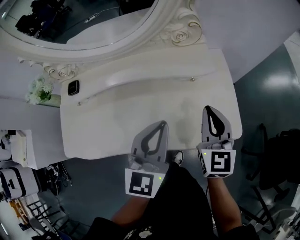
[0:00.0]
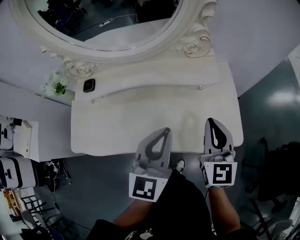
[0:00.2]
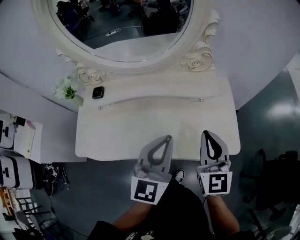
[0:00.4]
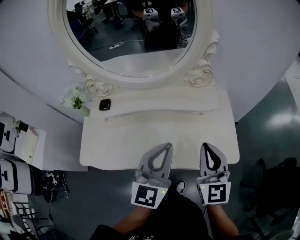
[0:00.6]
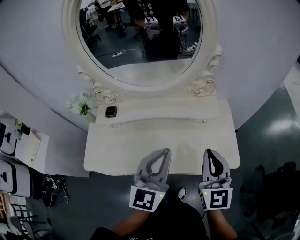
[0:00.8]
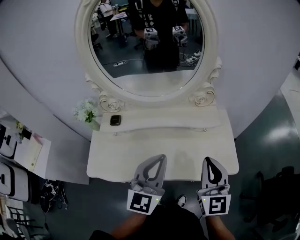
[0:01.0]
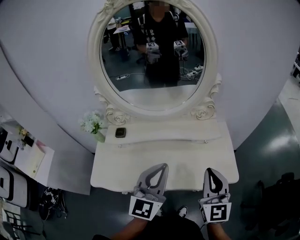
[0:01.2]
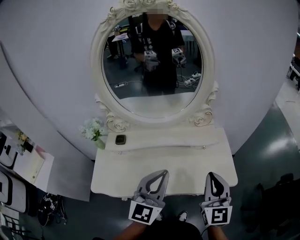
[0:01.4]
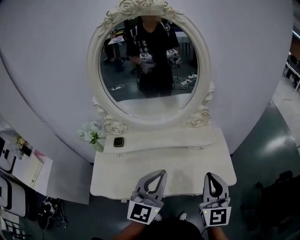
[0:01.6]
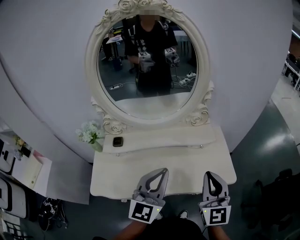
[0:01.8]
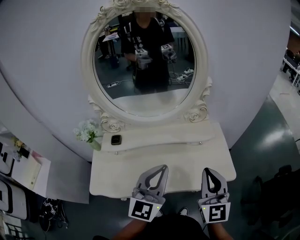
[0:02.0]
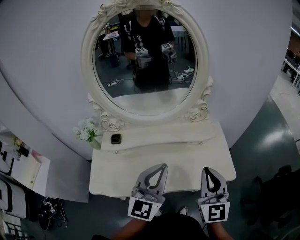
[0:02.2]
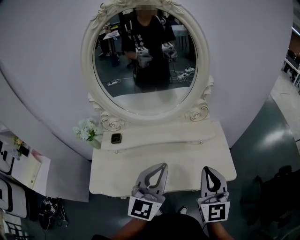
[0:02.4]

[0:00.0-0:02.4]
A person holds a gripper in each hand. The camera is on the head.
0:00.0 to 0:01.2: The left gripper goes about 15 cm upward, to the left and backward. The right gripper travels upward, backward and to the left by approximately 20 cm.
0:01.2 to 0:02.4: The grippers make only small movements.

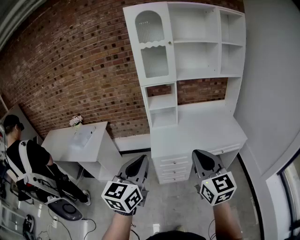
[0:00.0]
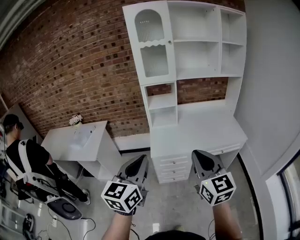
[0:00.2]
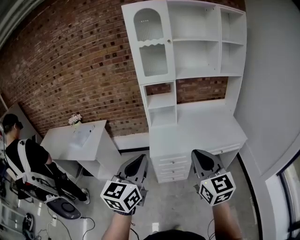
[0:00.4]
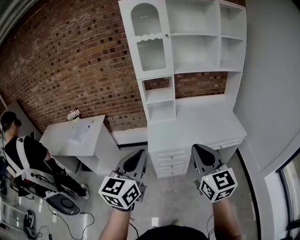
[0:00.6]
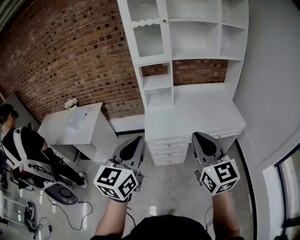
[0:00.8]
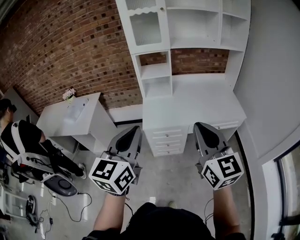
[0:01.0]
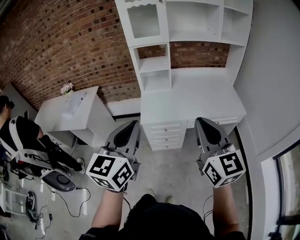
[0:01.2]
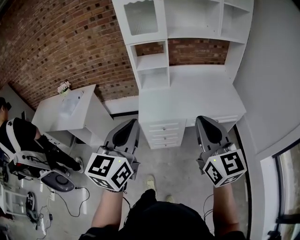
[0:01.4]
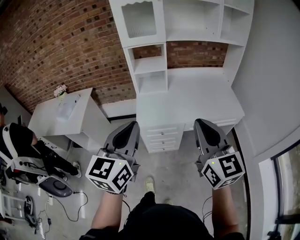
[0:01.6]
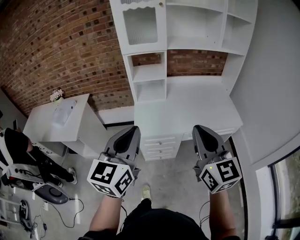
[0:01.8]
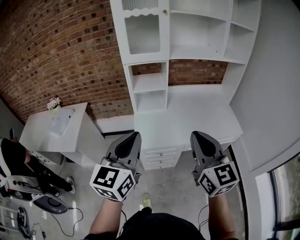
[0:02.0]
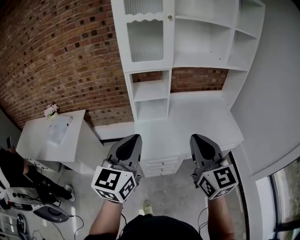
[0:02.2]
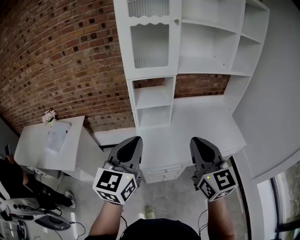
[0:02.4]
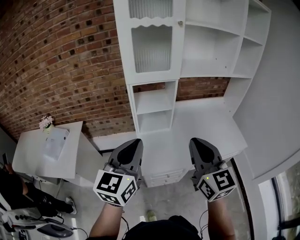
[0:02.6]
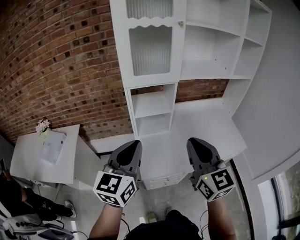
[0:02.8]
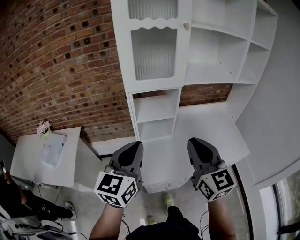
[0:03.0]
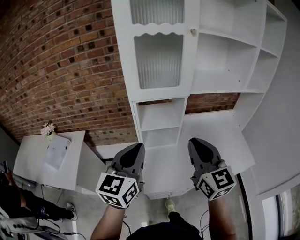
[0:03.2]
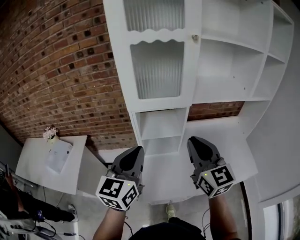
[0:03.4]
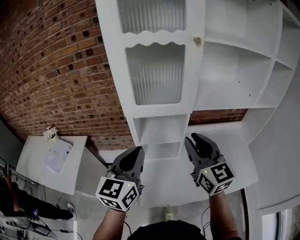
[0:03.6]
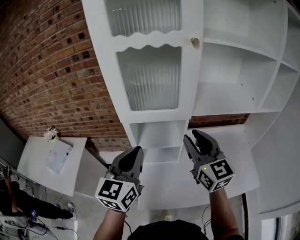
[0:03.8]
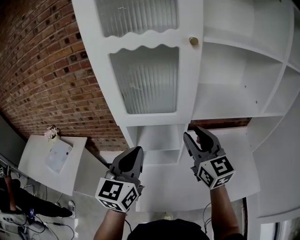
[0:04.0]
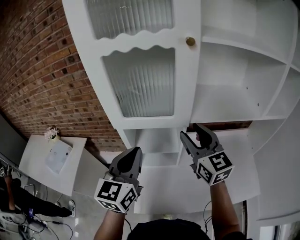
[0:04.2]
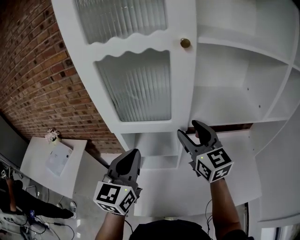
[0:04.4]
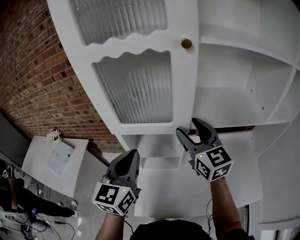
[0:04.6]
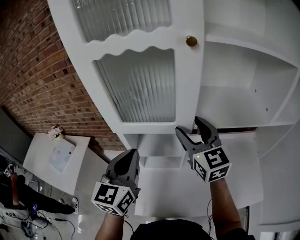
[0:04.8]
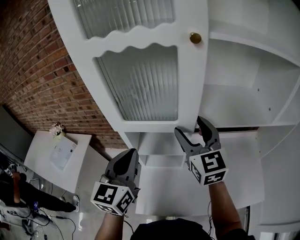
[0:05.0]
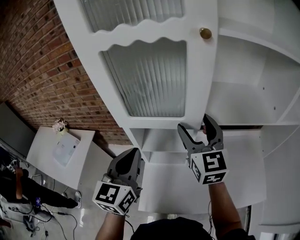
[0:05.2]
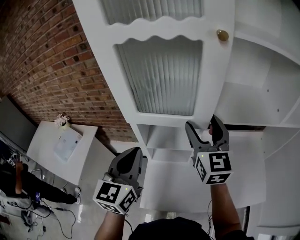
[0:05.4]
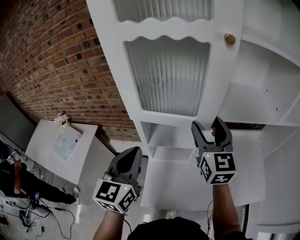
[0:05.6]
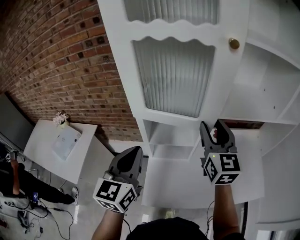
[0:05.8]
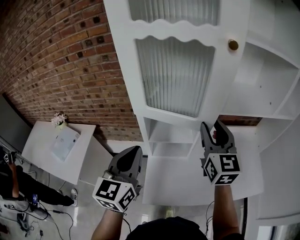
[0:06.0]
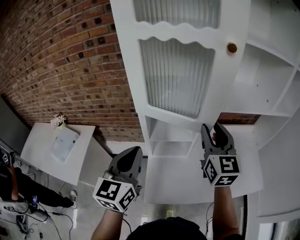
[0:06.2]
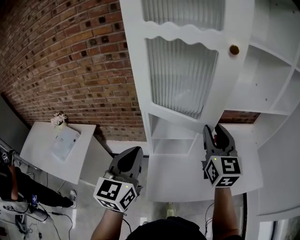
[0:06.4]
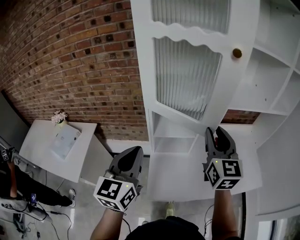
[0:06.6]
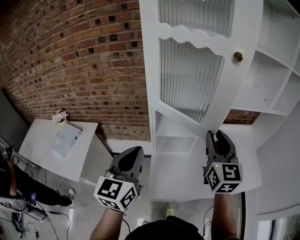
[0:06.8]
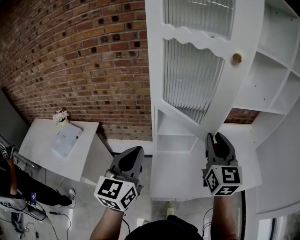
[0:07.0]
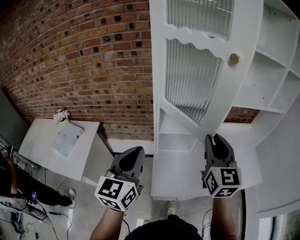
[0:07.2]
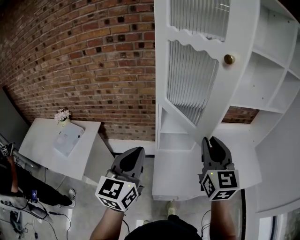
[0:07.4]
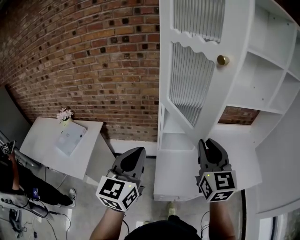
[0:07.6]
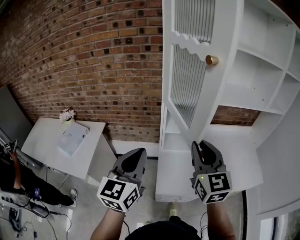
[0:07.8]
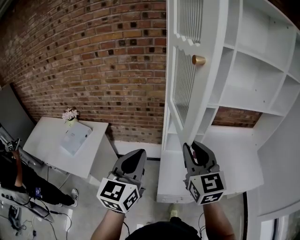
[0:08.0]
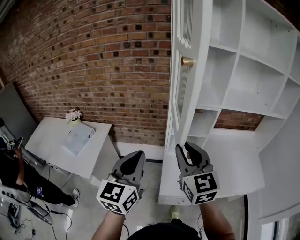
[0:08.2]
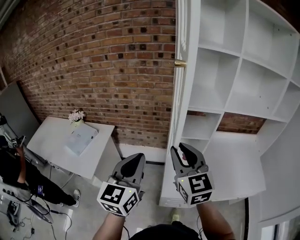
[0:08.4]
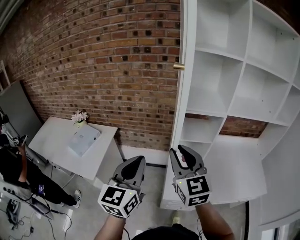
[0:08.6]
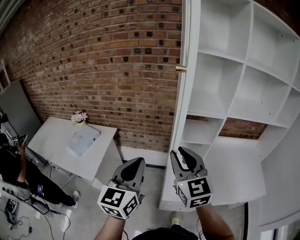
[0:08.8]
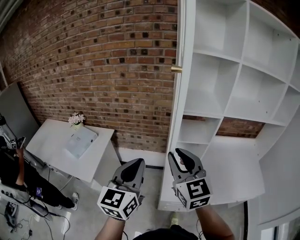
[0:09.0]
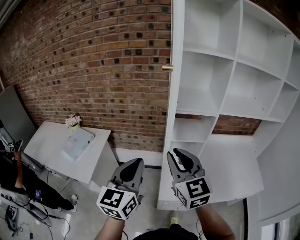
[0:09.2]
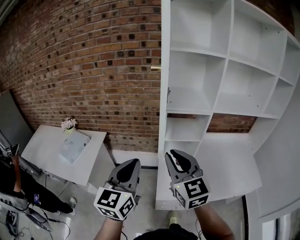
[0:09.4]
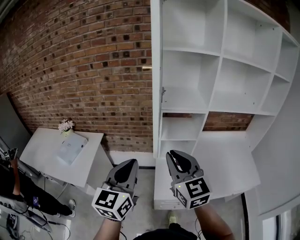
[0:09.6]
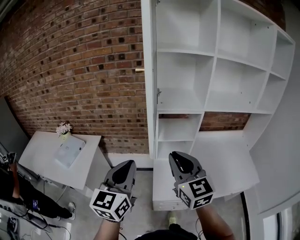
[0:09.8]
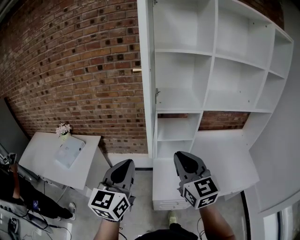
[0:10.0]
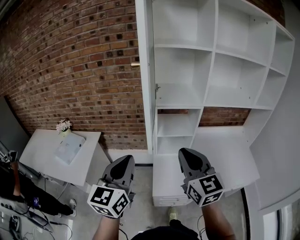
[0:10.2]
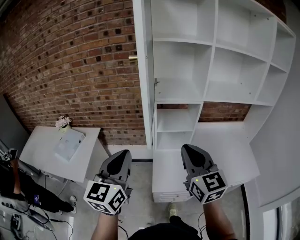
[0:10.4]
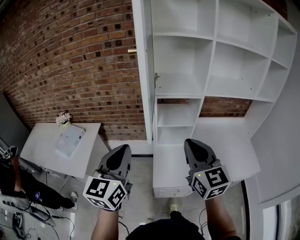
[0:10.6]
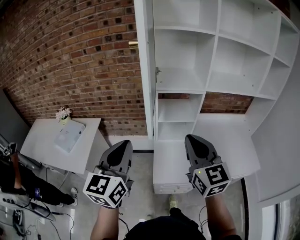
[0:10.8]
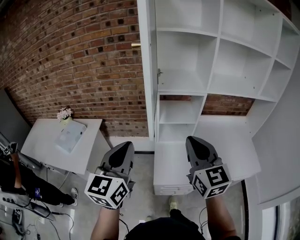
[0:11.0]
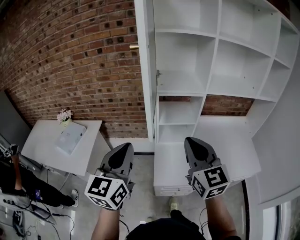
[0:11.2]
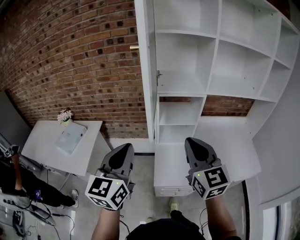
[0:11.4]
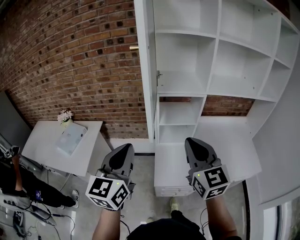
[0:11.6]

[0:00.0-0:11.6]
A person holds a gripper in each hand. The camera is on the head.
0:00.0 to 0:01.4: The grippers both shift to the right by approximately 5 cm.
0:01.4 to 0:02.8: The left gripper shifts about 30 cm forward. Meanwhile the right gripper goes approximately 30 cm forward and to the left.
0:02.8 to 0:04.4: Both grippers move forward, roughly 30 cm. The right gripper opens up.
0:04.4 to 0:05.8: The left gripper heads to the left, covering roughly 10 cm.
0:05.8 to 0:07.2: The left gripper goes some 15 cm backward and to the left, while the right gripper shifts about 15 cm backward.
0:07.2 to 0:08.8: The left gripper moves to the left and backward, roughly 10 cm. The right gripper travels to the left by approximately 20 cm, and turns by about 20 degrees.
0:08.8 to 0:10.2: The right gripper shifts approximately 10 cm to the right.
0:10.2 to 0:11.6: The grippers stay close to where they were, moving slightly.

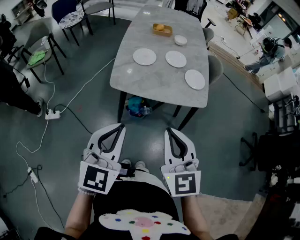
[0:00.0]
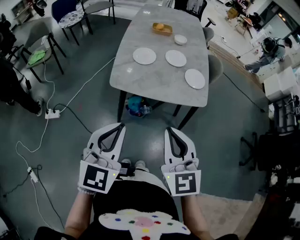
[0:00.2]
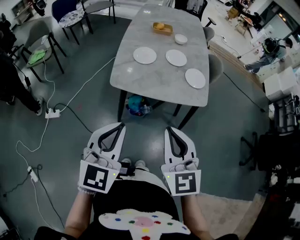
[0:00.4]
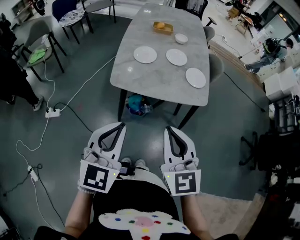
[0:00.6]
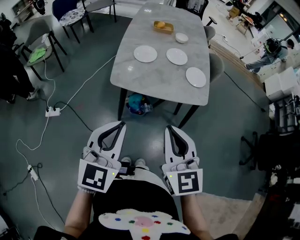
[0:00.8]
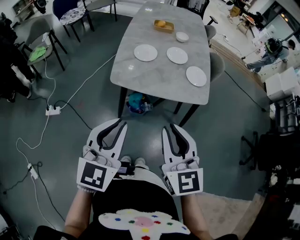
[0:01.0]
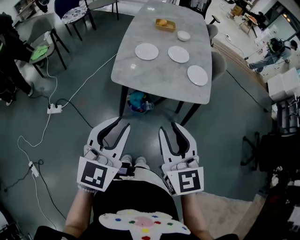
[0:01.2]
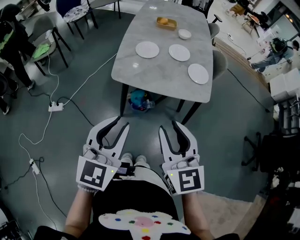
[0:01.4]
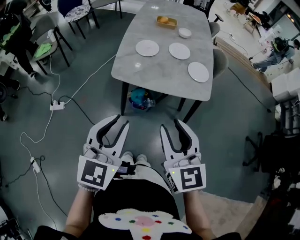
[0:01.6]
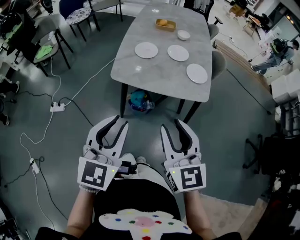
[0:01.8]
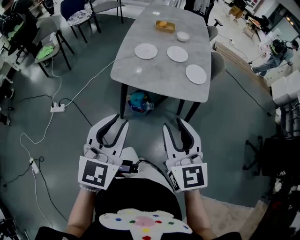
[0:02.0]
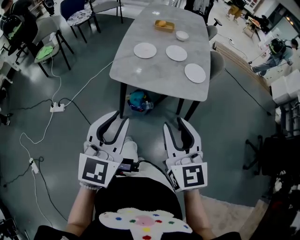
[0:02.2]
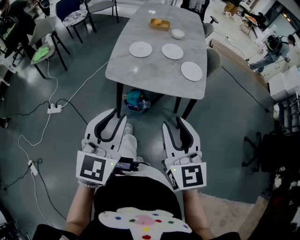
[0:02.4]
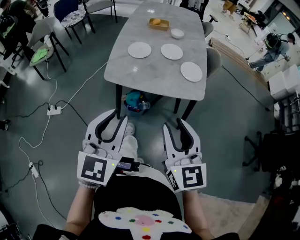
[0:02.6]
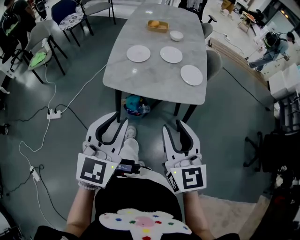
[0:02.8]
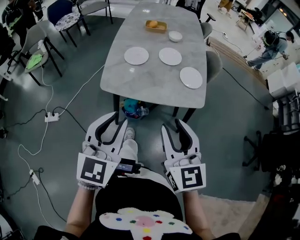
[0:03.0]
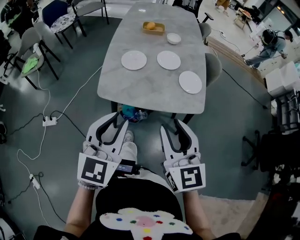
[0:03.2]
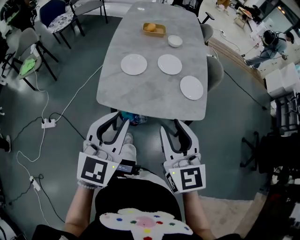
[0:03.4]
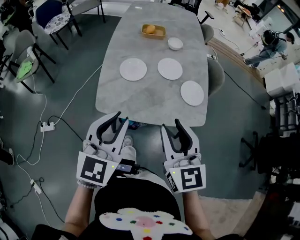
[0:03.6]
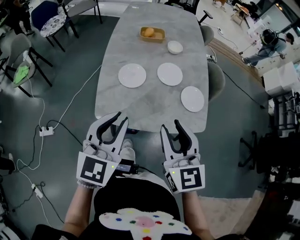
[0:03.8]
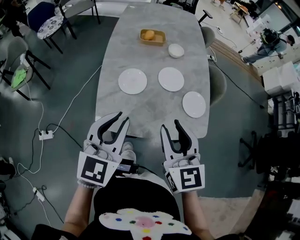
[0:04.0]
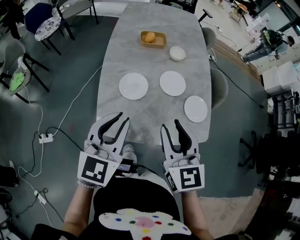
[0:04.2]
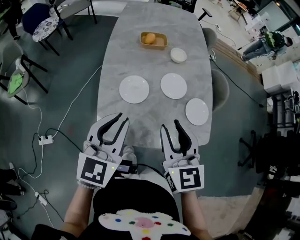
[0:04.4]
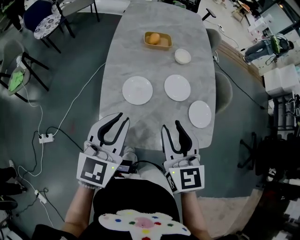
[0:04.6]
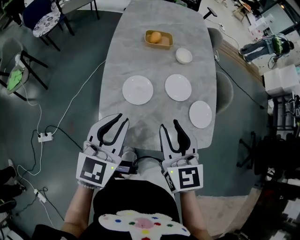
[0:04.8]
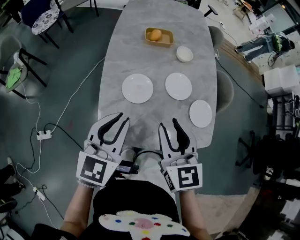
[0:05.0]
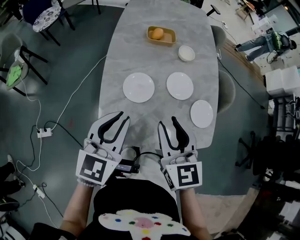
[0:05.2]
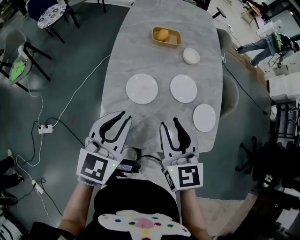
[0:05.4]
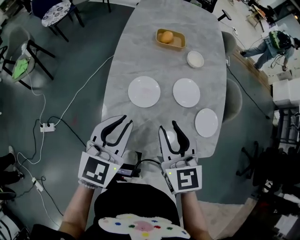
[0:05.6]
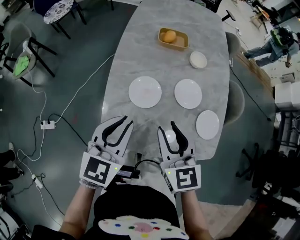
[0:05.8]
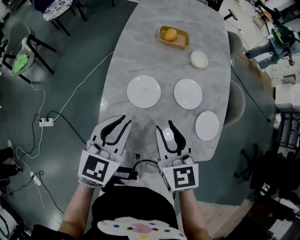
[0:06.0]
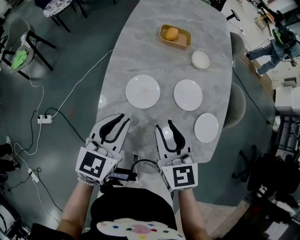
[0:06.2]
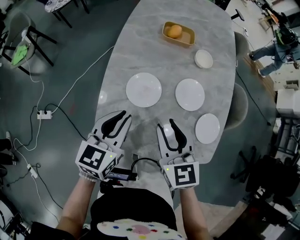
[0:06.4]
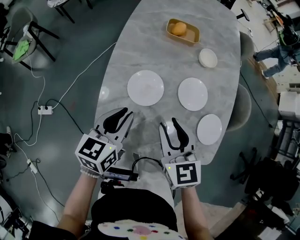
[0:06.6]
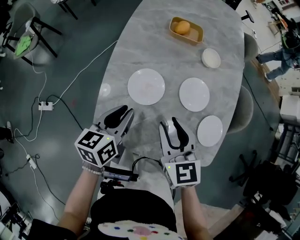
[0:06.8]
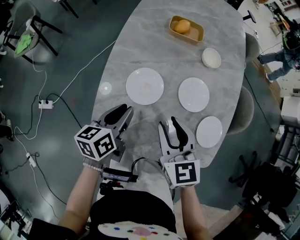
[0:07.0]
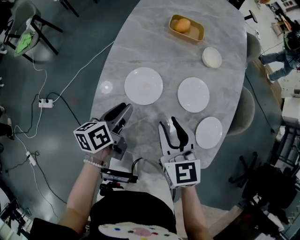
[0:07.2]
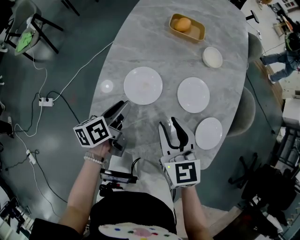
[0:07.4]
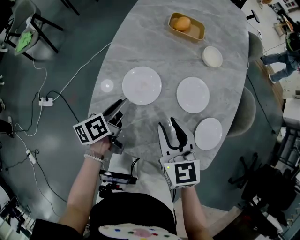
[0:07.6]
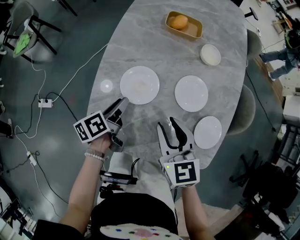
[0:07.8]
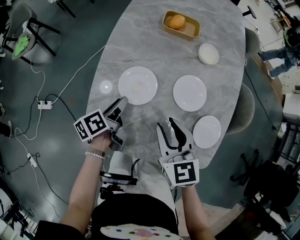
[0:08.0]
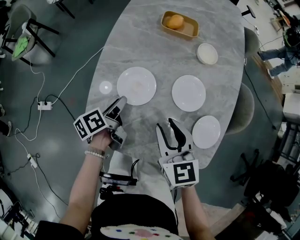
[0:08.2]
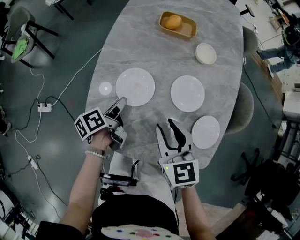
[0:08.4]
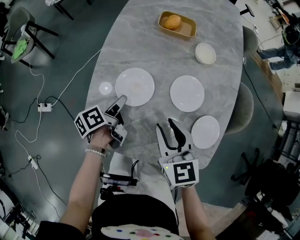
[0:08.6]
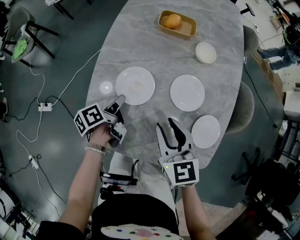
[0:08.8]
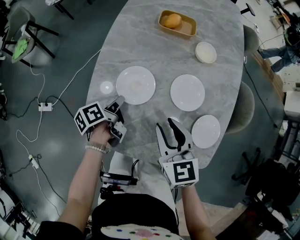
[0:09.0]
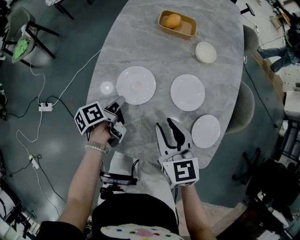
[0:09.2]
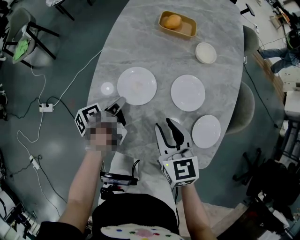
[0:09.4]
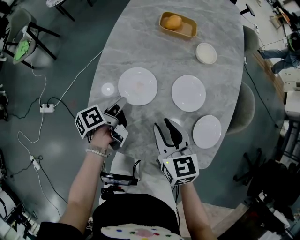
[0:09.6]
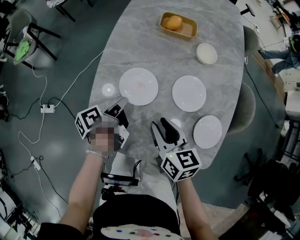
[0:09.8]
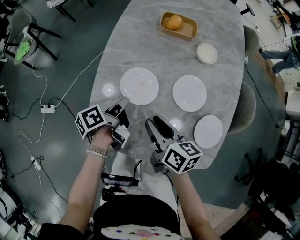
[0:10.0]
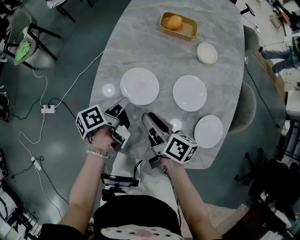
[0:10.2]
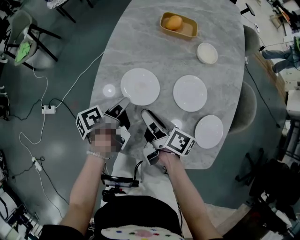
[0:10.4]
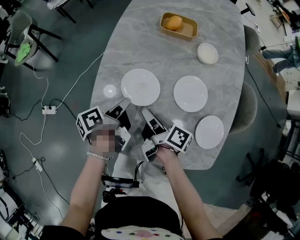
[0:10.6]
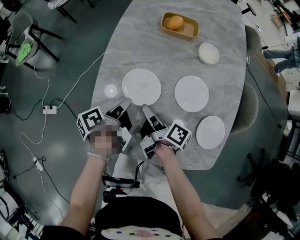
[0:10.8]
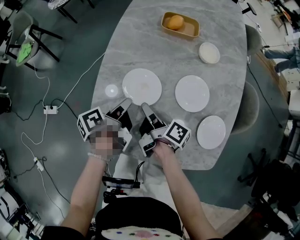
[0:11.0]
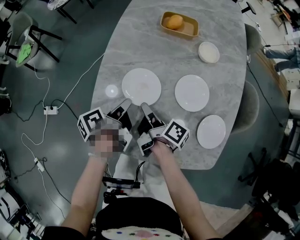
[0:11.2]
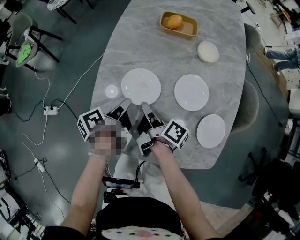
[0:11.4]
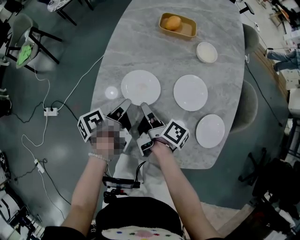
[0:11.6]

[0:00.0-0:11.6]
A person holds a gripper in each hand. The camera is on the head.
0:00.0 to 0:01.4: The right gripper opens up.
0:01.4 to 0:02.8: The right gripper moves to the right, about 5 cm.
0:02.8 to 0:04.4: The grippers both shift forward by some 30 cm.
0:04.4 to 0:05.8: The two grippers go approximately 5 cm downward.
0:05.8 to 0:07.2: The left gripper heads downward, covering some 15 cm, and twists approximately 60 degrees counterclockwise, seen from behind, while the right gripper shifts approximately 5 cm downward.
0:07.2 to 0:08.8: The left gripper moves downward, about 5 cm, and turns by some 30 degrees.
0:08.8 to 0:10.2: The right gripper is displaced downward and to the left by about 10 cm, and rolls clockwise, seen from behind, by about 60 degrees.
0:10.2 to 0:11.6: The right gripper moves some 5 cm, changes its angle by approximately 30 degrees, and closes.
